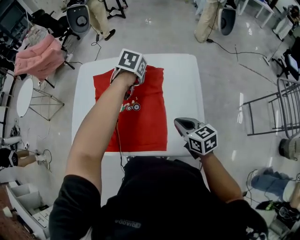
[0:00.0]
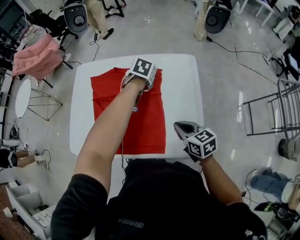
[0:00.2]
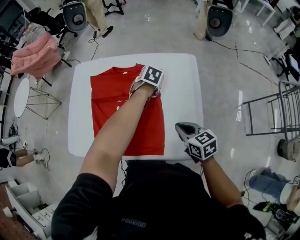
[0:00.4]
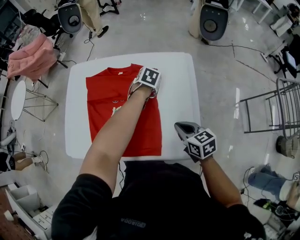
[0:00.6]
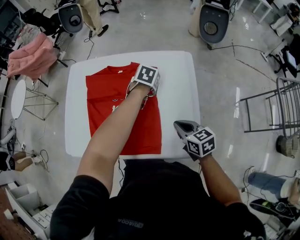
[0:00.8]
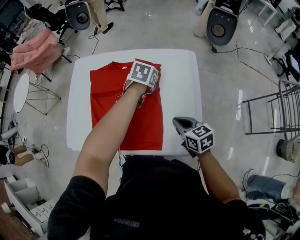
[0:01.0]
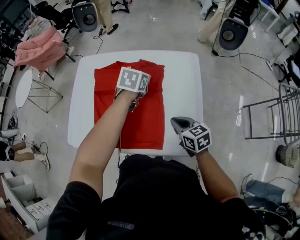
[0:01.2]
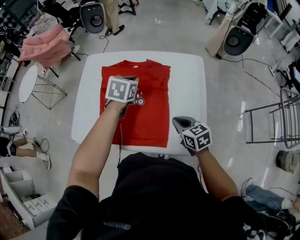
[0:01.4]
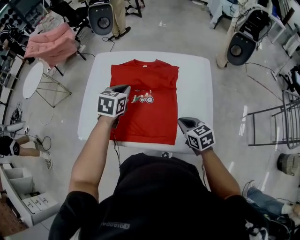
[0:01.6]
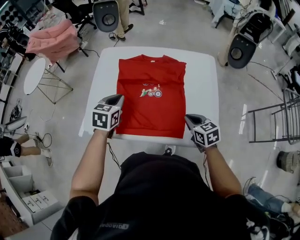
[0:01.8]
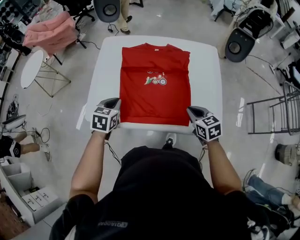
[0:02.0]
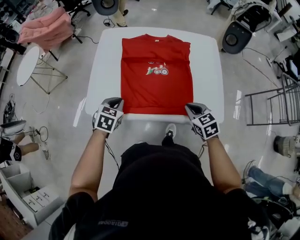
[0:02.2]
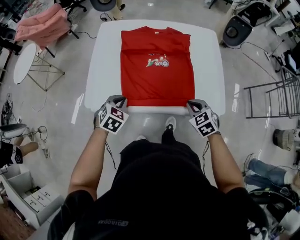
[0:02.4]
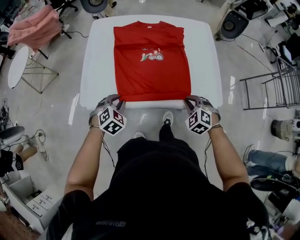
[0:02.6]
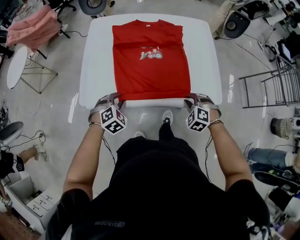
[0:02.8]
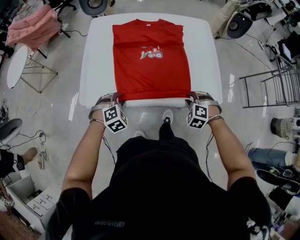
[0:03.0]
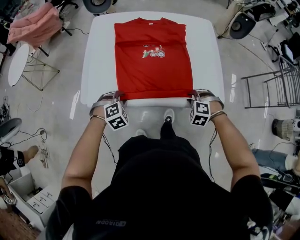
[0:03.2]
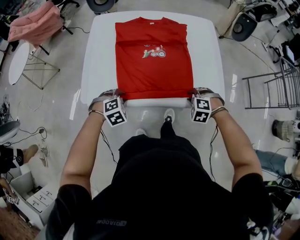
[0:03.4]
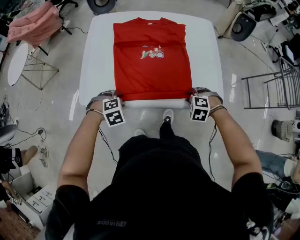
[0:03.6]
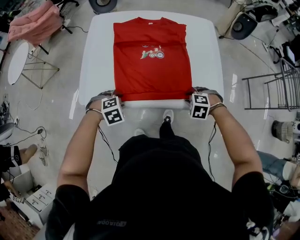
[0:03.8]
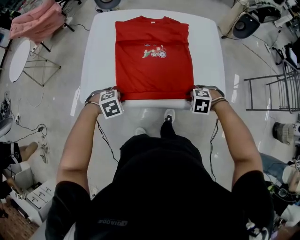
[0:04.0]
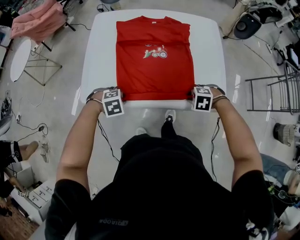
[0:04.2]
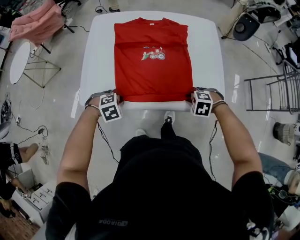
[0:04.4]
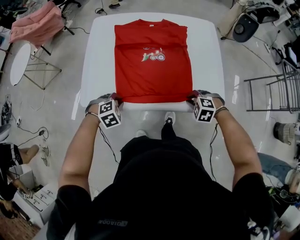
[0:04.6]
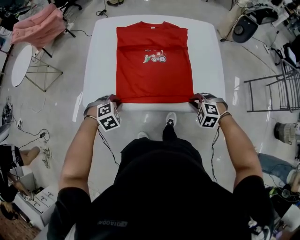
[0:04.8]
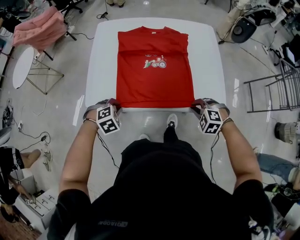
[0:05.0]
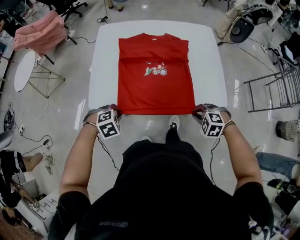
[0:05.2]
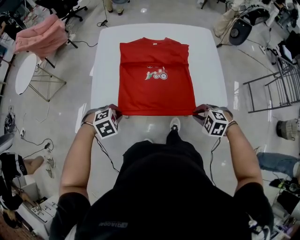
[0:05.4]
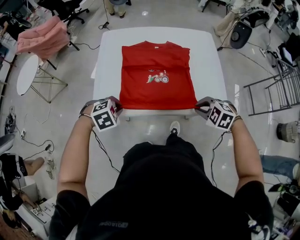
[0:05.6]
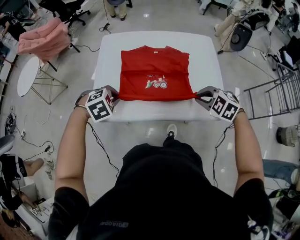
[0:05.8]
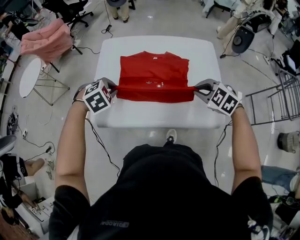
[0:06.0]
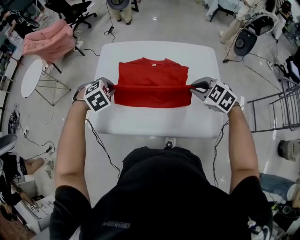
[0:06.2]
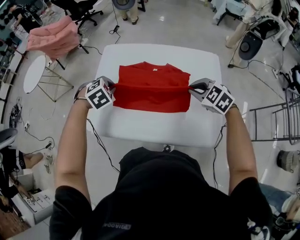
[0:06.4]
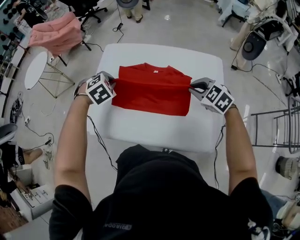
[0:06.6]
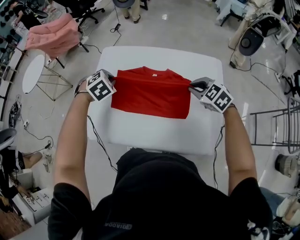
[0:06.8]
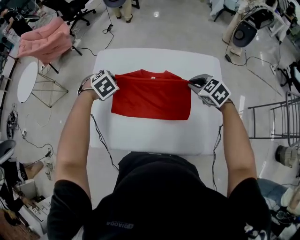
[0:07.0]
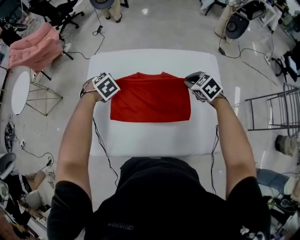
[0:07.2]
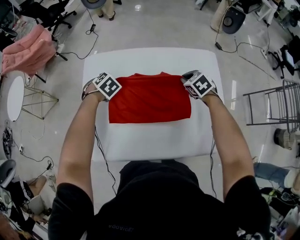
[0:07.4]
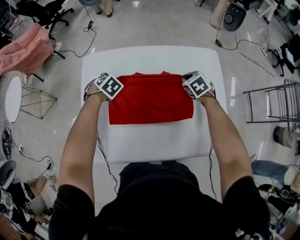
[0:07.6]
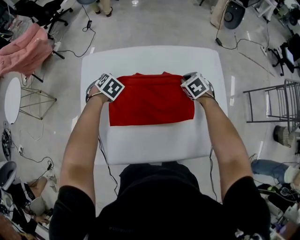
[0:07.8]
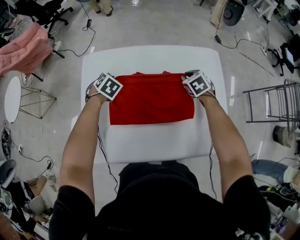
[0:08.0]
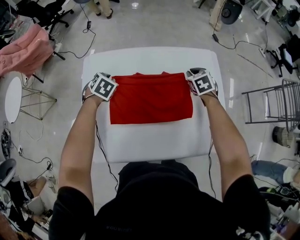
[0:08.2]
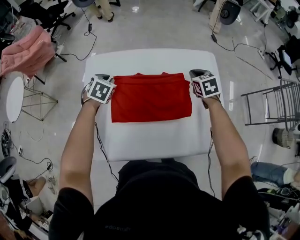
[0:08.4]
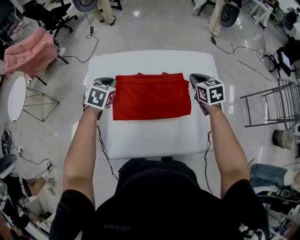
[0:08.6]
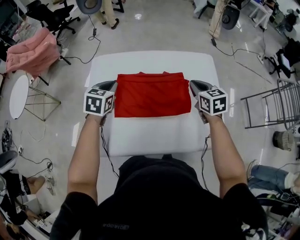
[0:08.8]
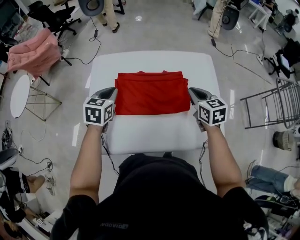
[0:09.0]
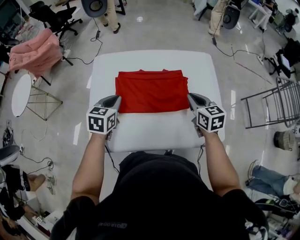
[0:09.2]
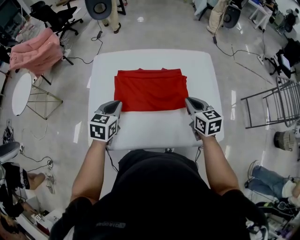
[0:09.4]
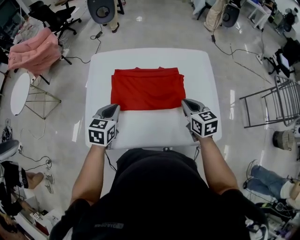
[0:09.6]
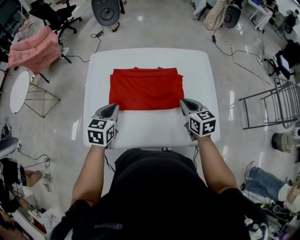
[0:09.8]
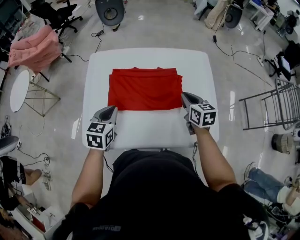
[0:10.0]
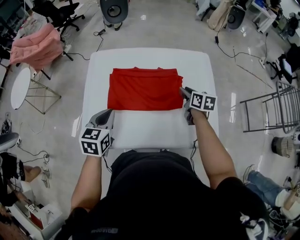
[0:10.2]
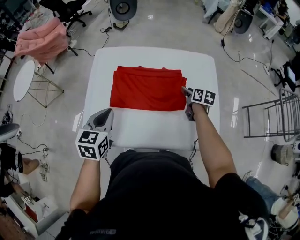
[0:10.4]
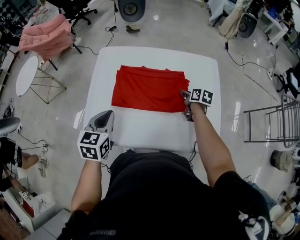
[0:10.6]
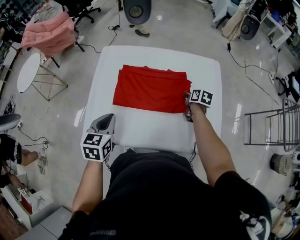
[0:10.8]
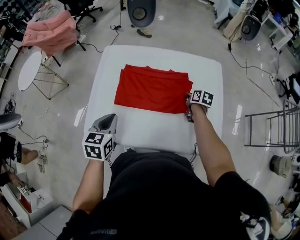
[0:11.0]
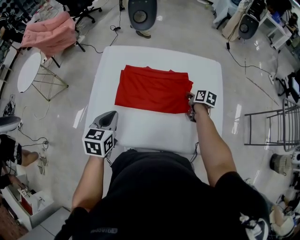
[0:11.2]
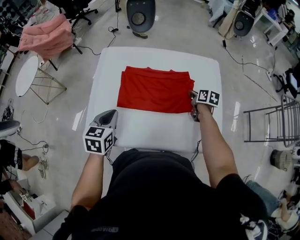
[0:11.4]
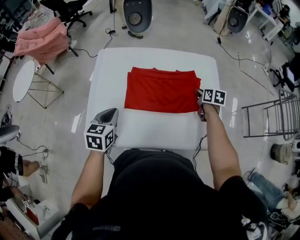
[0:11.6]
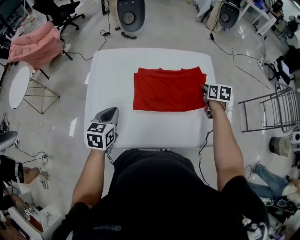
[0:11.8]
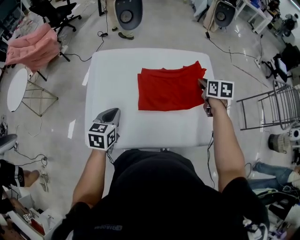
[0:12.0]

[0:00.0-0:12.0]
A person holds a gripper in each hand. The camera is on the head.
0:00.0 to 0:01.6: The left gripper moves to the left and backward, about 20 cm, turns by roughly 20 degrees, and opens, then closes again. The right gripper changes place by some 5 cm.
0:01.6 to 0:03.0: The right gripper heads backward and downward, covering about 15 cm, twists about 60 degrees counterclockwise, seen from behind, and opens its fingers; the left gripper is displaced backward, downward and to the left by roughly 30 cm, rotates around the line of its fingers by approximately 60 degrees, clockwise from behind, and opens its fingers.
0:03.0 to 0:04.4: The right gripper rotates some 20 degrees; the left gripper swivels some 20 degrees.
0:04.4 to 0:06.0: The two grippers go about 15 cm upward. The right gripper changes its angle by some 30 degrees.
0:06.0 to 0:07.6: The two grippers go roughly 30 cm forward and downward. The right gripper swivels about 40 degrees; the left gripper changes its angle by approximately 20 degrees.
0:07.6 to 0:09.0: Both grippers move upward and backward, some 20 cm. The right gripper changes its angle by roughly 40 degrees. The left gripper tips its fingers upward by about 40 degrees.
0:09.0 to 0:10.4: The right gripper travels downward and to the right by some 15 cm, turns by roughly 30 degrees, and opens its fingers; the left gripper moves backward, some 15 cm.
0:10.4 to 0:12.0: The left gripper shifts about 5 cm downward. Meanwhile the right gripper travels upward by approximately 10 cm, and closes its fingers.

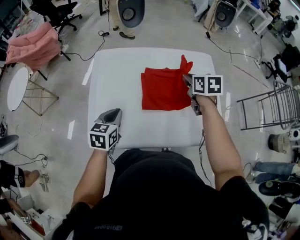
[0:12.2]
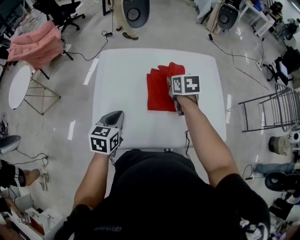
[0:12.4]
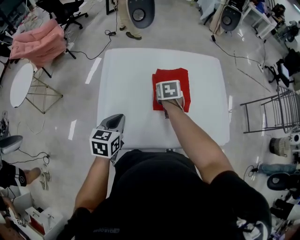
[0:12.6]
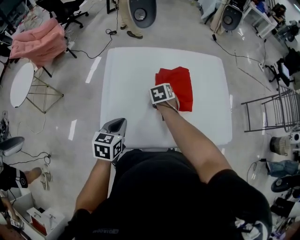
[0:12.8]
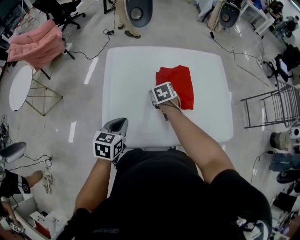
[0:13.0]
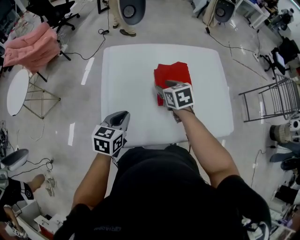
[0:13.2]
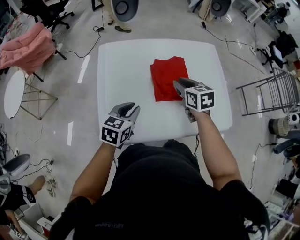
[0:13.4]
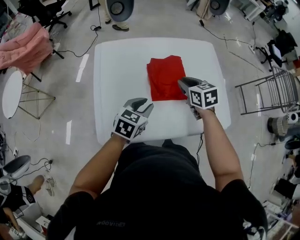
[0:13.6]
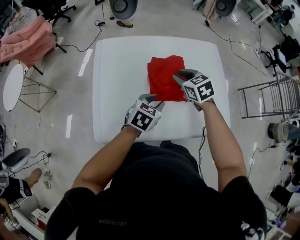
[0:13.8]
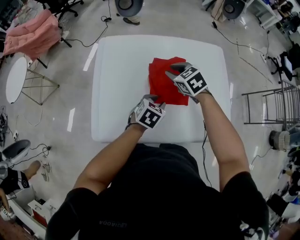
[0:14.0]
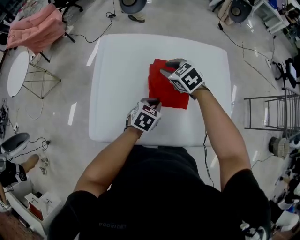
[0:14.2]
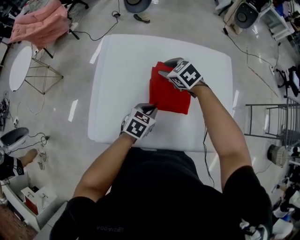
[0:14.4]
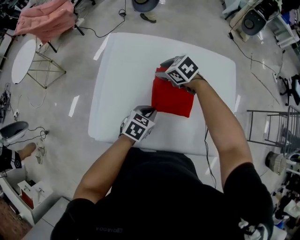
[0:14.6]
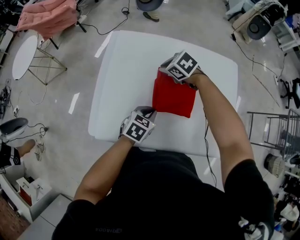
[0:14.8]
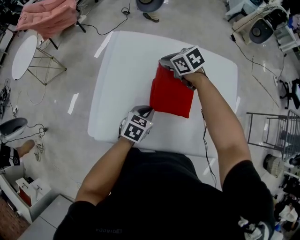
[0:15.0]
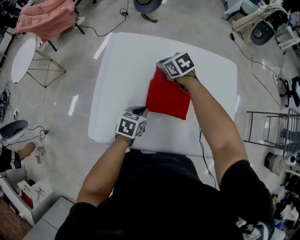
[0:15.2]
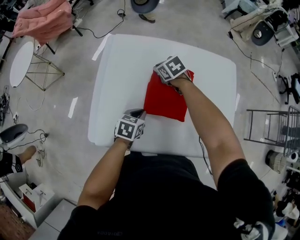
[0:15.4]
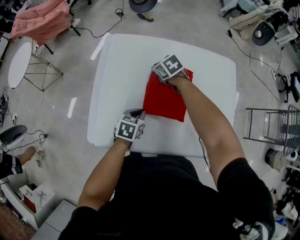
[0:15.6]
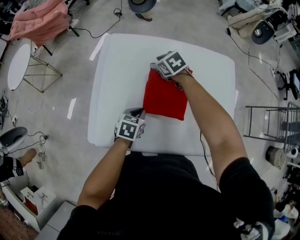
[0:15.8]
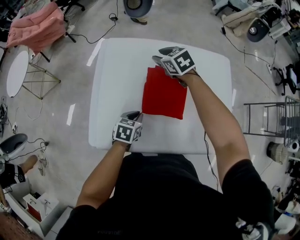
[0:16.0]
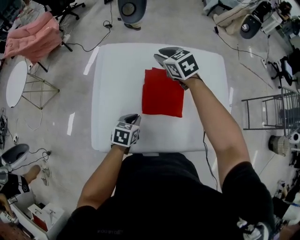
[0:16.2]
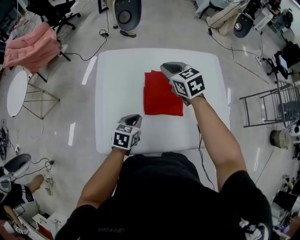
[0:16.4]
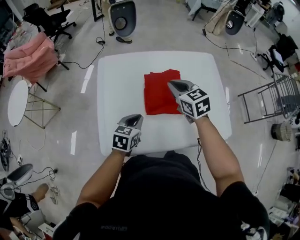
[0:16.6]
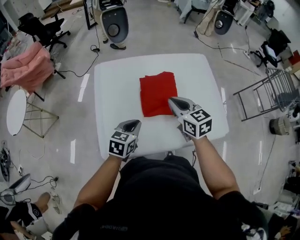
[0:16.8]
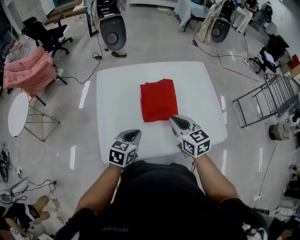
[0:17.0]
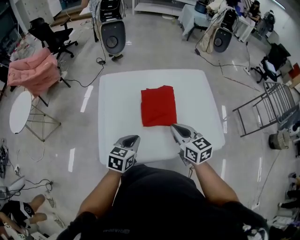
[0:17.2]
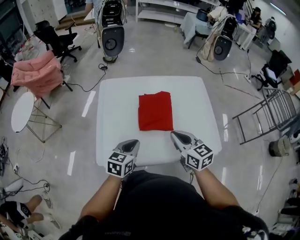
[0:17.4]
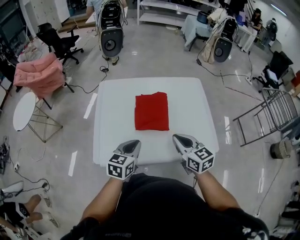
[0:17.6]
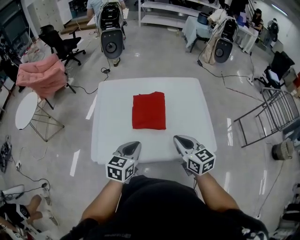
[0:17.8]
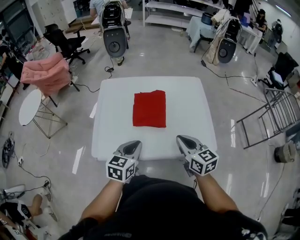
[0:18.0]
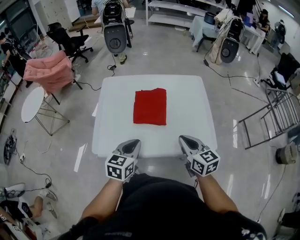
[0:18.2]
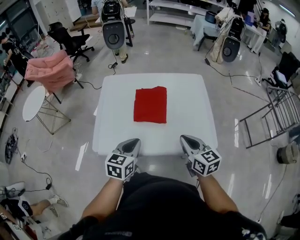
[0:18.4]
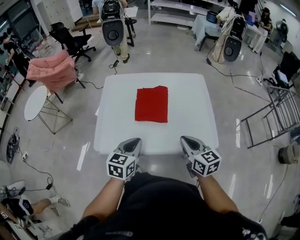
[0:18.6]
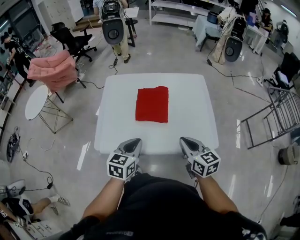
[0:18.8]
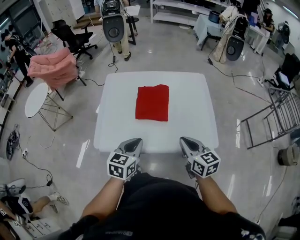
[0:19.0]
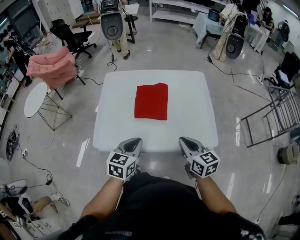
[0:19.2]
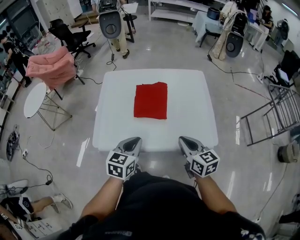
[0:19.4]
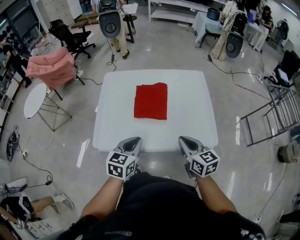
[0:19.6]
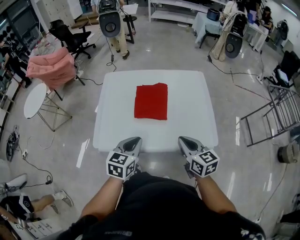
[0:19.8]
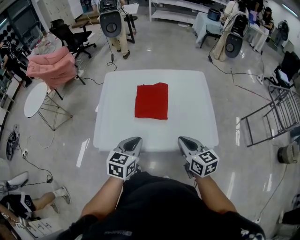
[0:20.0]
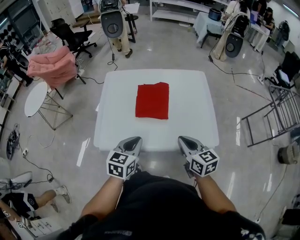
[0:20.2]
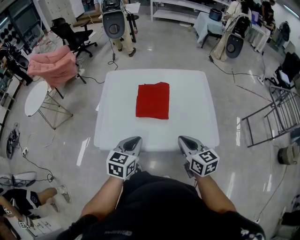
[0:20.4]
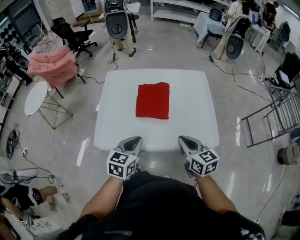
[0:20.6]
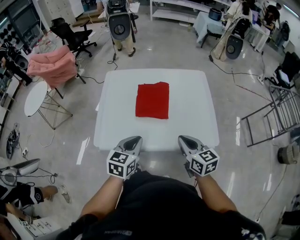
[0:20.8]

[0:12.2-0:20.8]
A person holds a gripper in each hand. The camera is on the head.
0:12.2 to 0:13.6: The left gripper moves to the right, approximately 5 cm, rotates some 20 degrees, and opens its fingers, while the right gripper travels backward by some 5 cm, travels to the left and back again, roughly 20 cm each way, and opens, then closes once more.
0:13.6 to 0:15.0: The left gripper moves downward, roughly 10 cm; the right gripper moves about 20 cm, changes its angle by some 40 degrees, and opens and closes again.
0:15.0 to 0:16.6: The right gripper moves backward, upward and to the right, roughly 15 cm, rotates approximately 40 degrees, and opens and closes again; the left gripper travels to the left and upward by some 10 cm.
0:16.6 to 0:18.0: The right gripper heads backward and to the right, covering some 25 cm. The left gripper goes roughly 20 cm backward, upward and to the right.
0:18.0 to 0:20.8: The grippers move only a little.

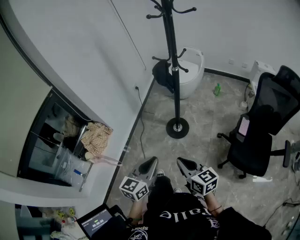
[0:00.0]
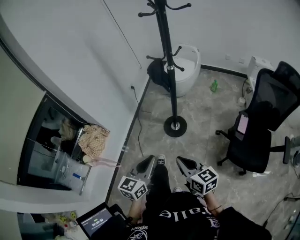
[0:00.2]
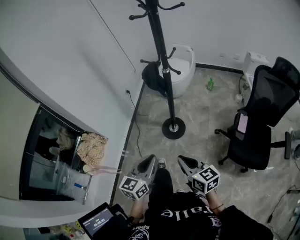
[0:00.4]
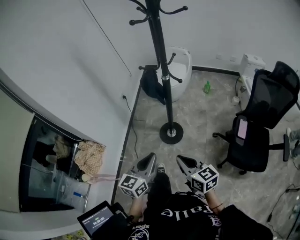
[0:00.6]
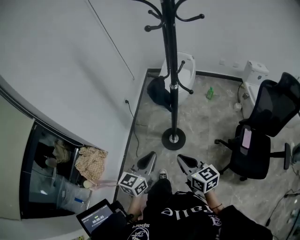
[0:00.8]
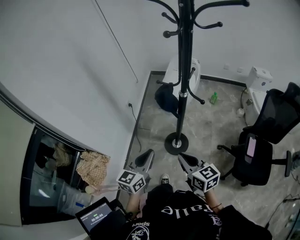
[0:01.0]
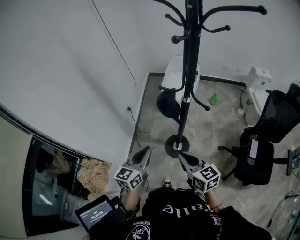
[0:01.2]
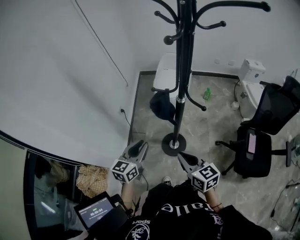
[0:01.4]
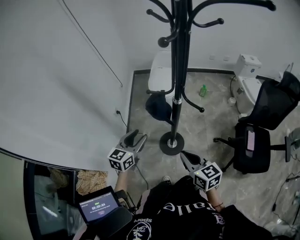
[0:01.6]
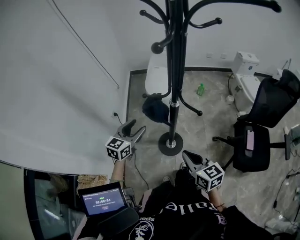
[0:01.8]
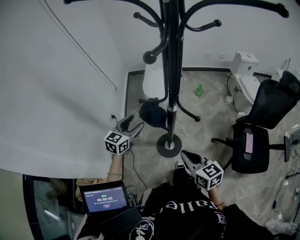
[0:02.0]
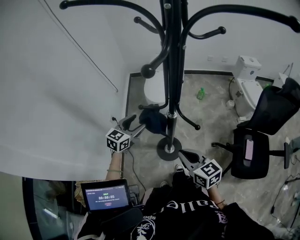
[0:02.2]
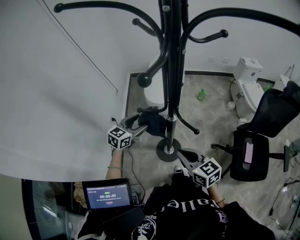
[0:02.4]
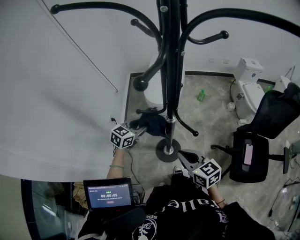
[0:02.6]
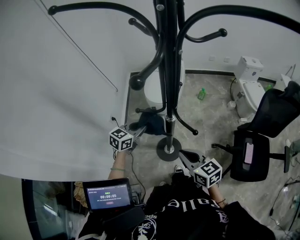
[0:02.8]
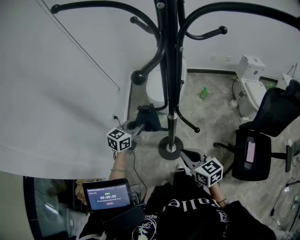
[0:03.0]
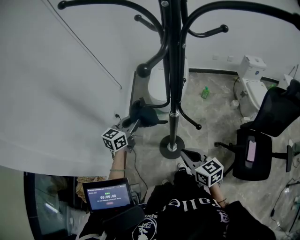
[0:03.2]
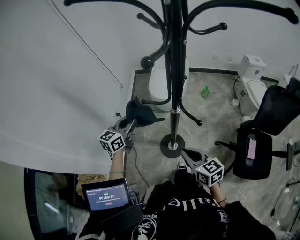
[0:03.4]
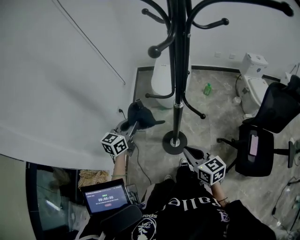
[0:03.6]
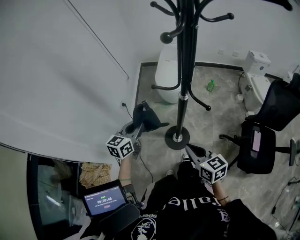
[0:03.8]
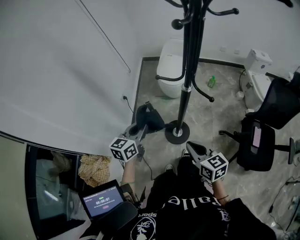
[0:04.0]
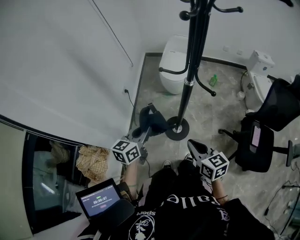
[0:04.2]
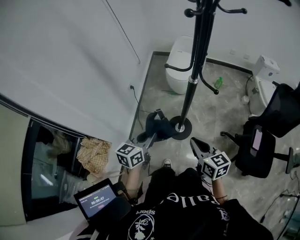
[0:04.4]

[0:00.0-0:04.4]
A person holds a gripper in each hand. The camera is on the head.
0:00.0 to 0:01.4: Both grippers move forward, about 35 cm.
0:01.4 to 0:03.0: The right gripper heads forward and to the right, covering roughly 15 cm; the left gripper heads forward, covering roughly 20 cm, and opens, then closes again.
0:03.0 to 0:04.4: The left gripper is displaced backward by some 25 cm, and swivels some 20 degrees, while the right gripper travels backward by about 15 cm.
